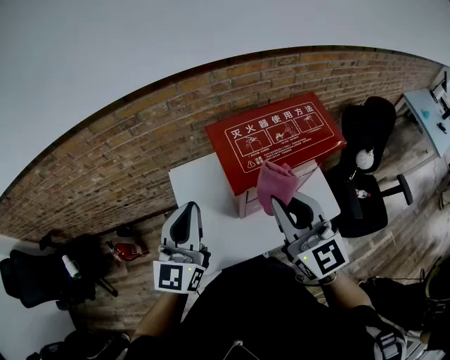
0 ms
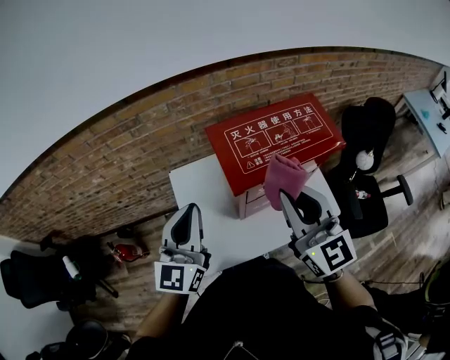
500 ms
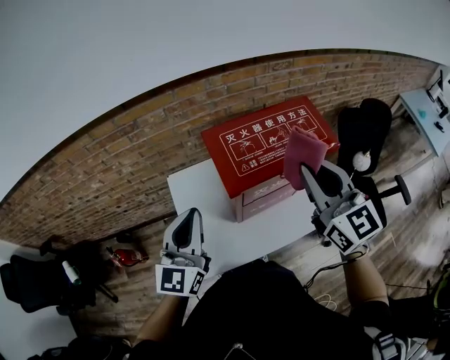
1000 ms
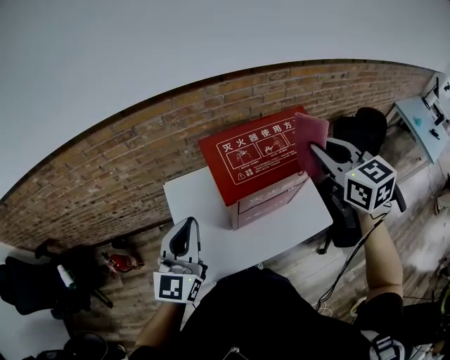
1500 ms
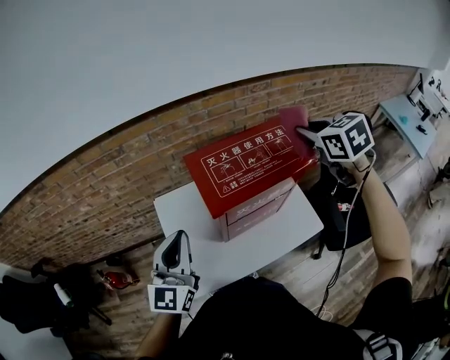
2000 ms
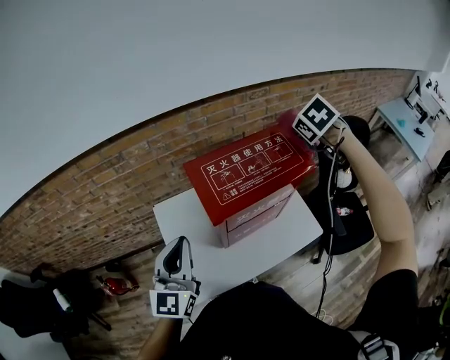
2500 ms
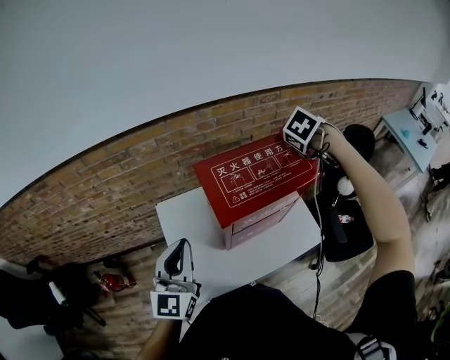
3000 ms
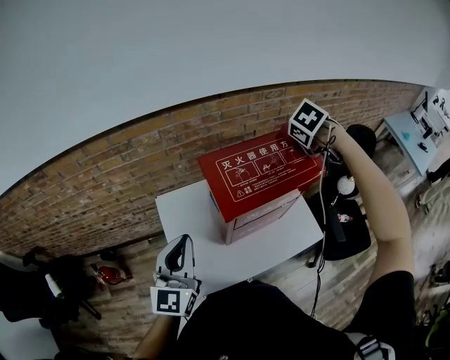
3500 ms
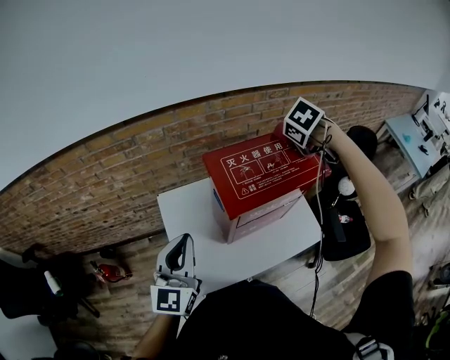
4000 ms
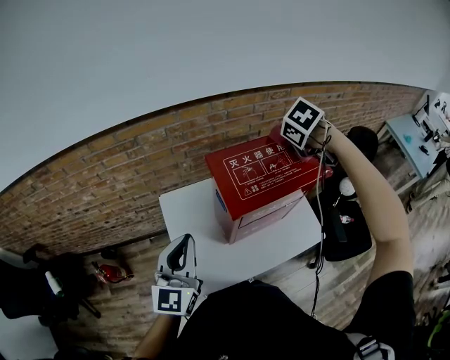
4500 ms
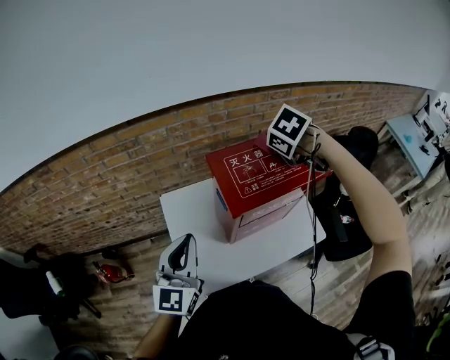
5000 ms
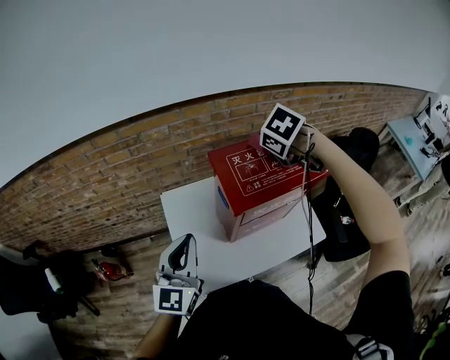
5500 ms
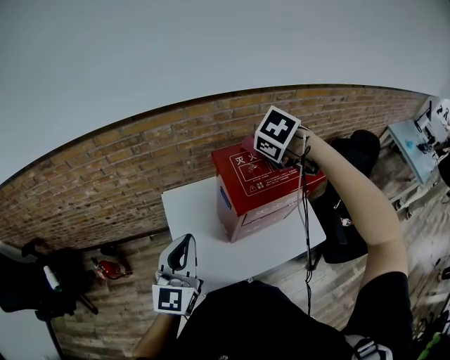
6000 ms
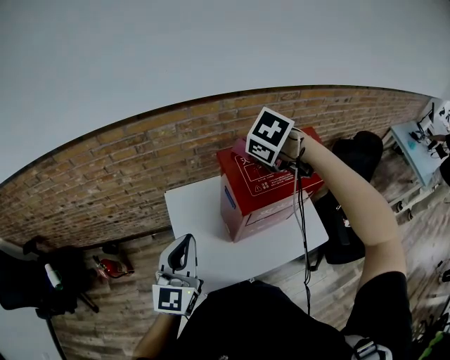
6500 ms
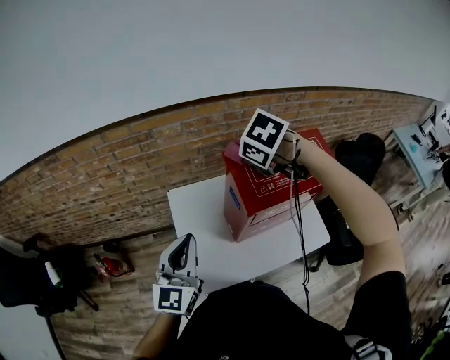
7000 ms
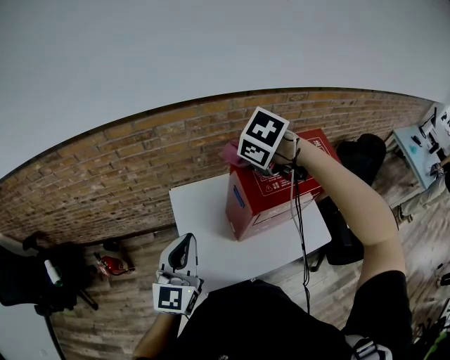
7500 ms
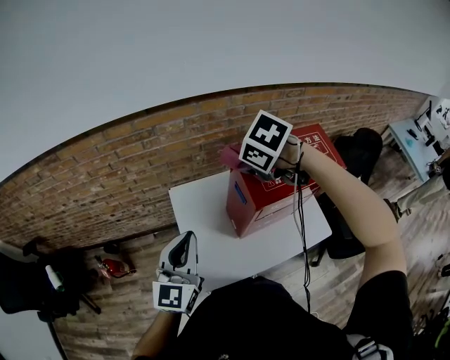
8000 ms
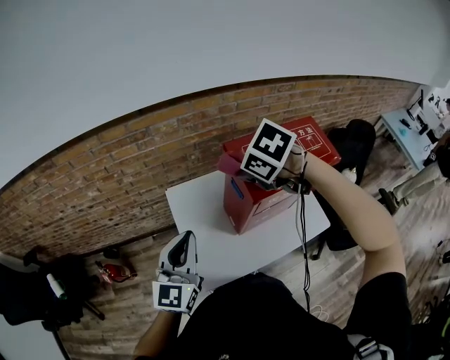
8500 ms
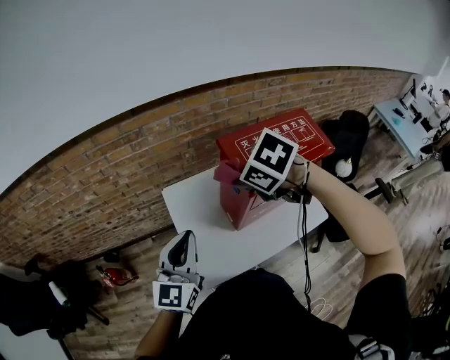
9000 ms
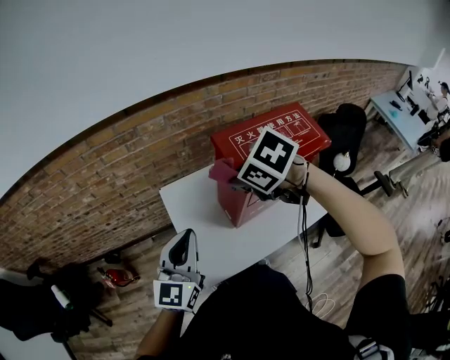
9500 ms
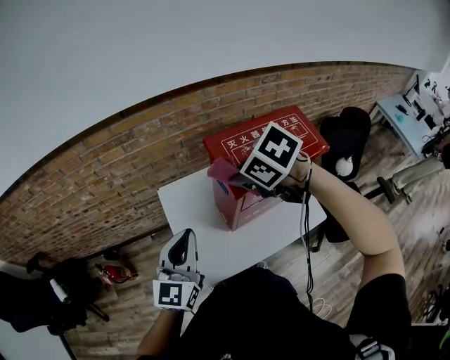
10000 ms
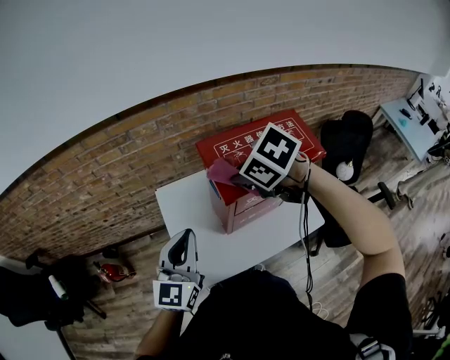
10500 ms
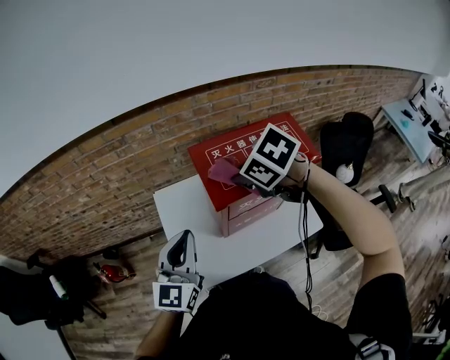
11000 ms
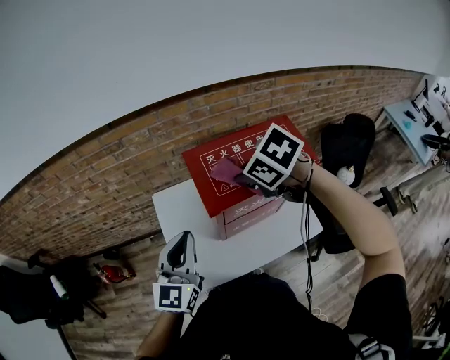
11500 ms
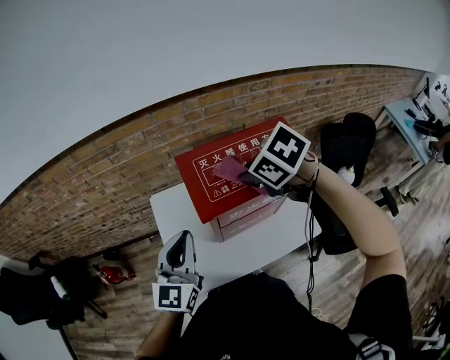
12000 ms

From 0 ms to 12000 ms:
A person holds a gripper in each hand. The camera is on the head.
From 0 ms to 2000 ms: The right gripper heads to the right and forward, covering about 25 cm, and angles its fingers downward, by some 40 degrees.
From 2000 ms to 4000 ms: The right gripper shifts some 10 cm downward, to the left and forward, and tilts its fingers about 30 degrees downward.
From 4000 ms to 6000 ms: The right gripper is displaced to the left by approximately 15 cm.
From 6000 ms to 8000 ms: The right gripper heads to the left, covering approximately 15 cm.
From 8000 ms to 10000 ms: The right gripper travels backward by roughly 5 cm.
From 10000 ms to 12000 ms: Both grippers move to the right, roughly 10 cm.

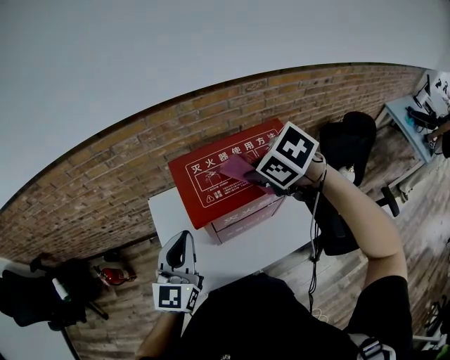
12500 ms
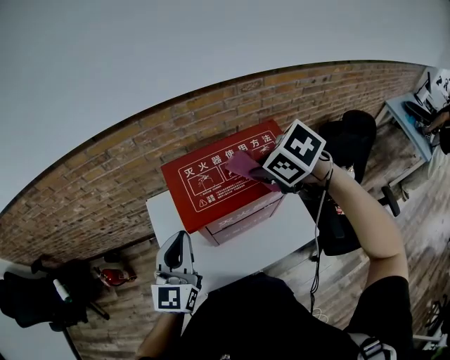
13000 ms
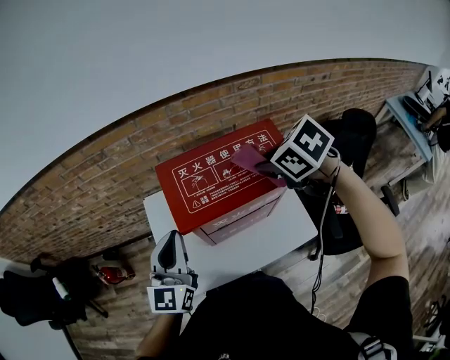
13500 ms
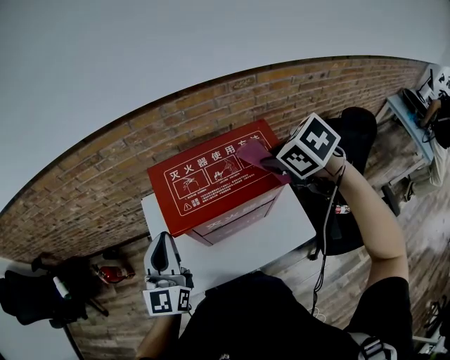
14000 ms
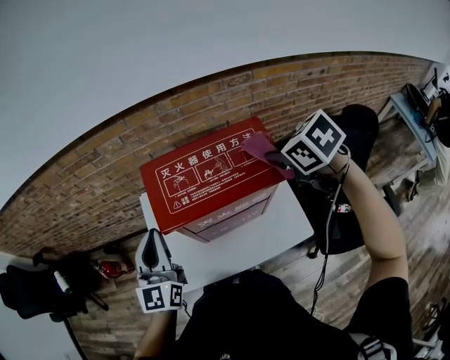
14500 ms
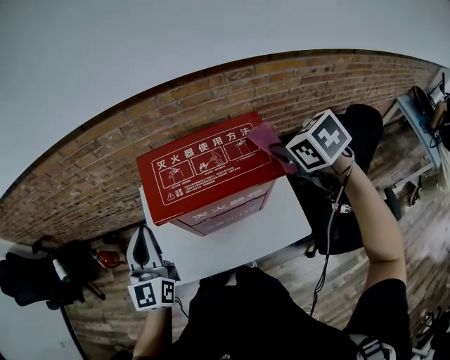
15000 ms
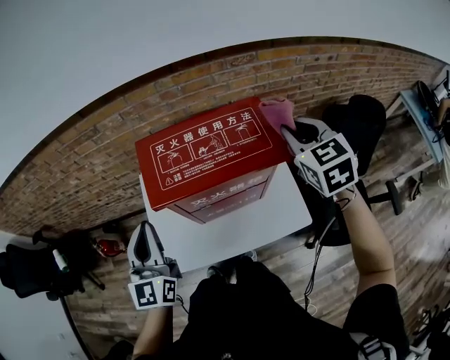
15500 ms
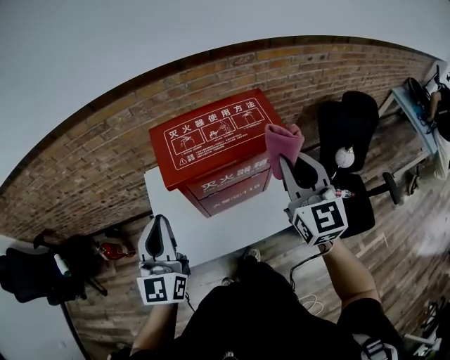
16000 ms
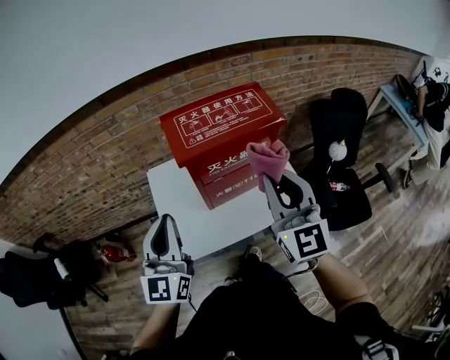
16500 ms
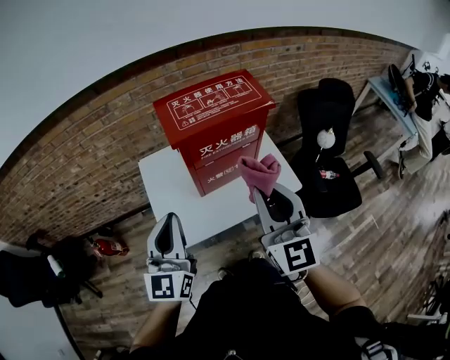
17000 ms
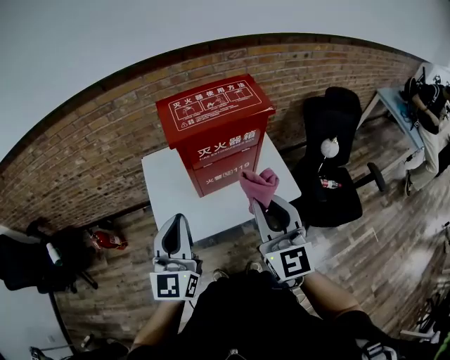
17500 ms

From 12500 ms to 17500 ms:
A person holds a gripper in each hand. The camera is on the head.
From 12500 ms to 15000 ms: The right gripper heads to the right, covering some 15 cm; the left gripper rotates roughly 20 degrees.
From 15000 ms to 17500 ms: The right gripper is displaced backward by roughly 35 cm, and points its fingers about 50 degrees further upward; the left gripper shifts some 20 cm backward.

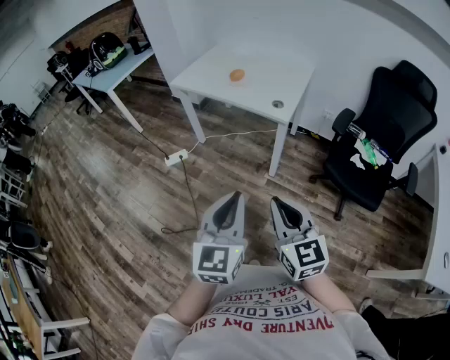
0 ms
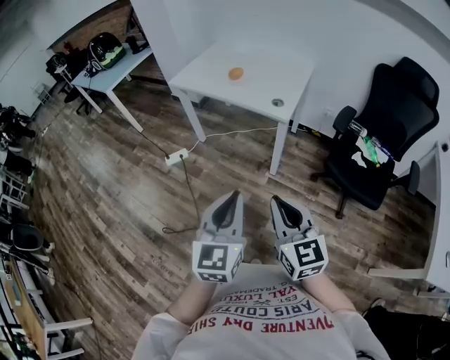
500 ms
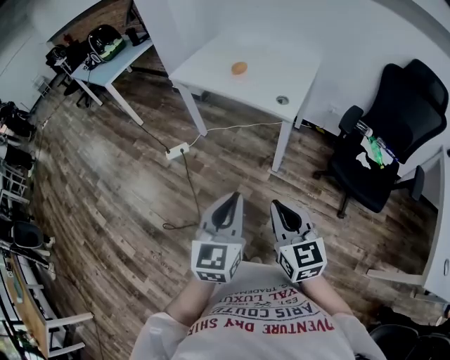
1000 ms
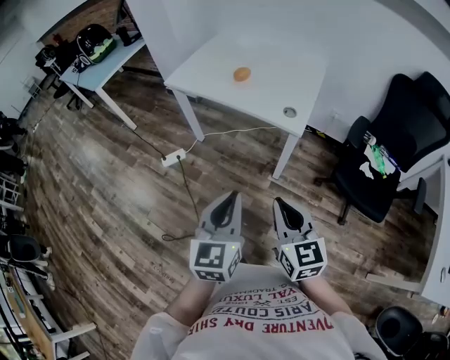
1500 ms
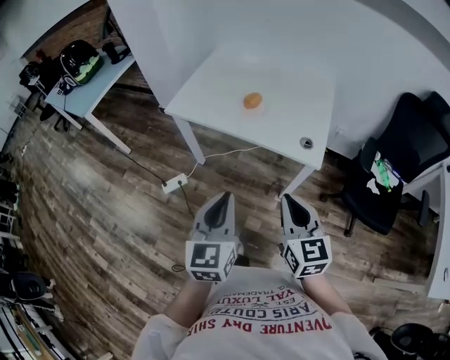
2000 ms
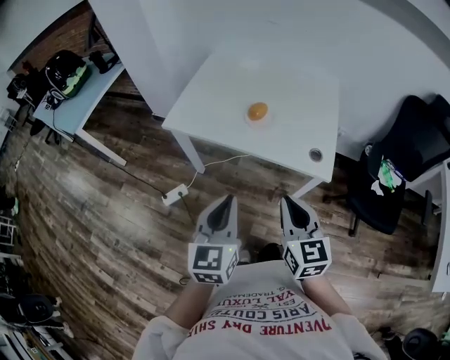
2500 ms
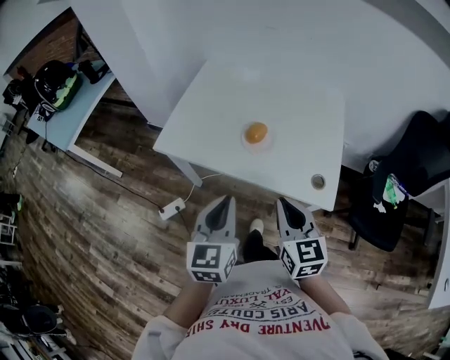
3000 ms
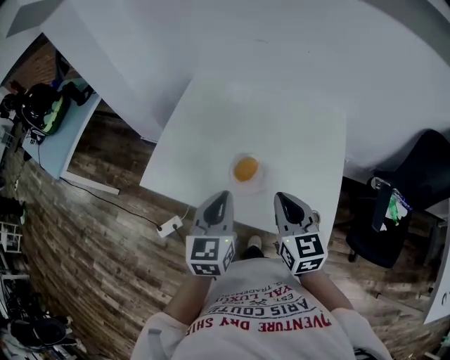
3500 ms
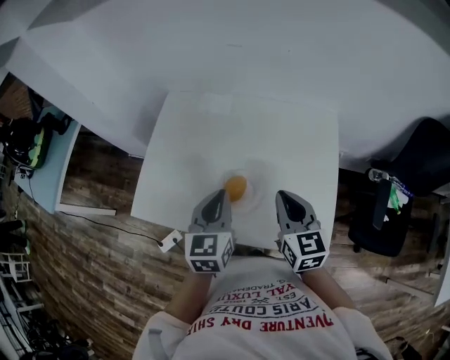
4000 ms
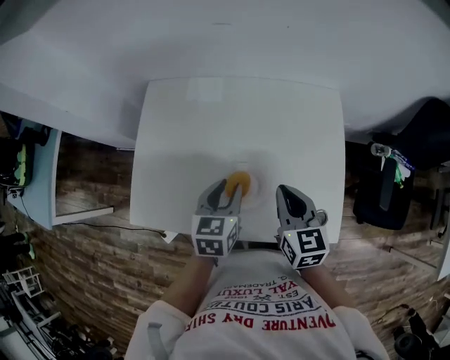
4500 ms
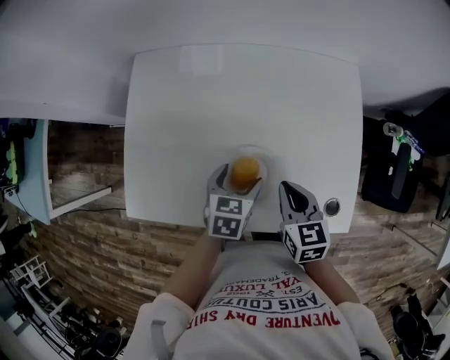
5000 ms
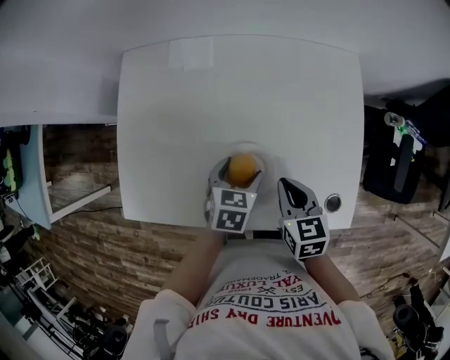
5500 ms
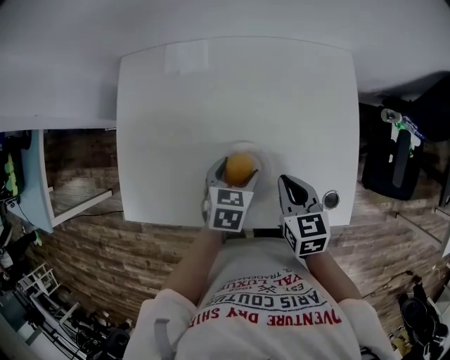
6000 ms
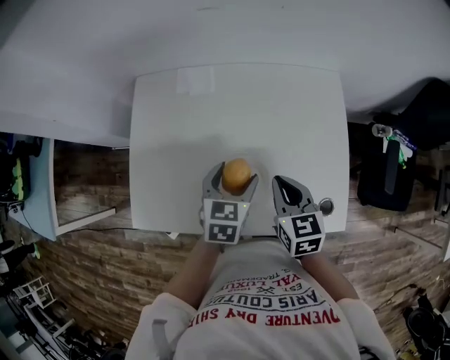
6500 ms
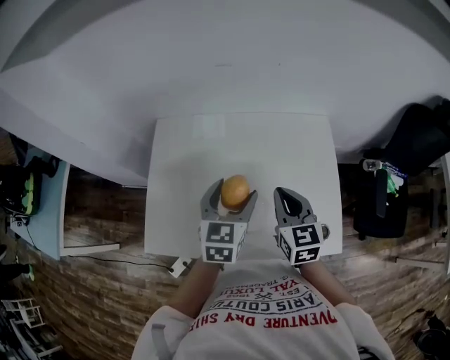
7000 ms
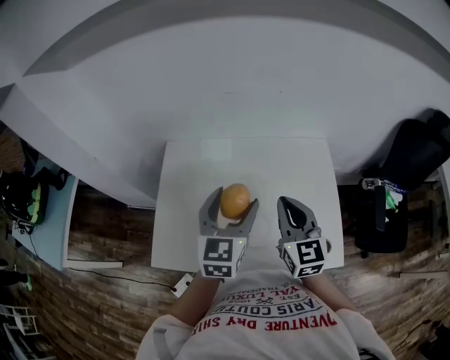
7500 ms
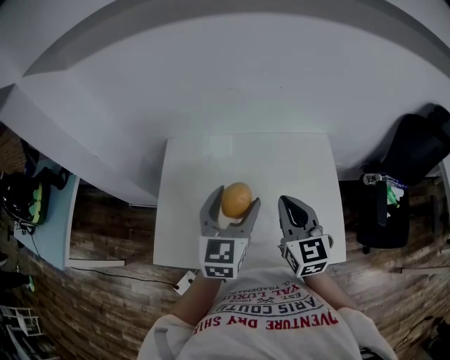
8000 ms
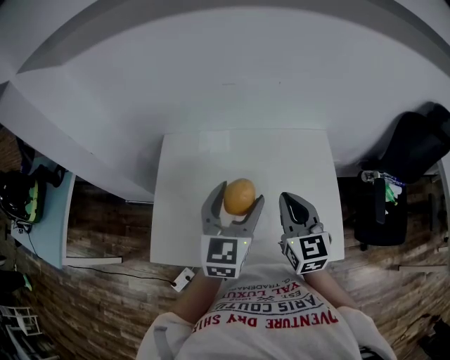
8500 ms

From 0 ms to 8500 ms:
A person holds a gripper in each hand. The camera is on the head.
From 0 ms to 2000 ms: The right gripper travels forward by approximately 35 cm, while the left gripper moves forward and to the left, some 40 cm.
From 2000 ms to 4000 ms: The pair of grippers is taken forward, roughly 50 cm.
From 4000 ms to 6500 ms: The left gripper moves downward and forward, some 15 cm, turns by roughly 30 degrees, and opens up; the right gripper moves downward, about 10 cm.
From 6500 ms to 8500 ms: Both grippers travel together upward, some 20 cm. The left gripper changes its angle by approximately 30 degrees, while the right gripper turns by approximately 20 degrees.

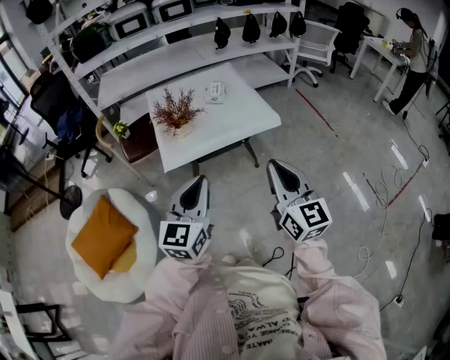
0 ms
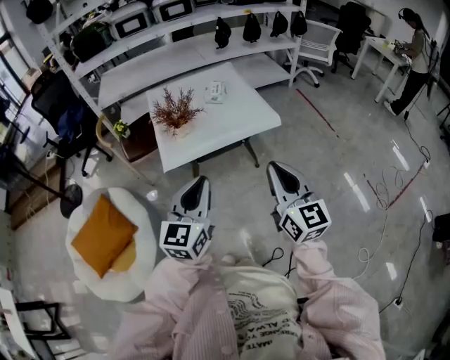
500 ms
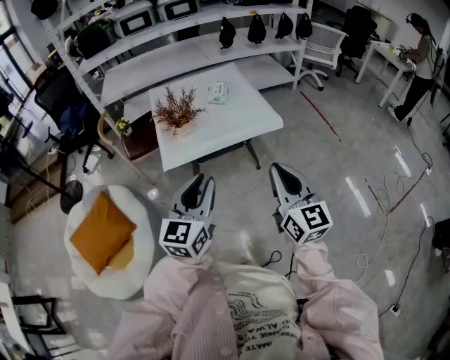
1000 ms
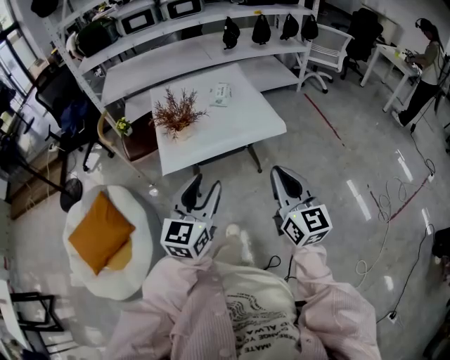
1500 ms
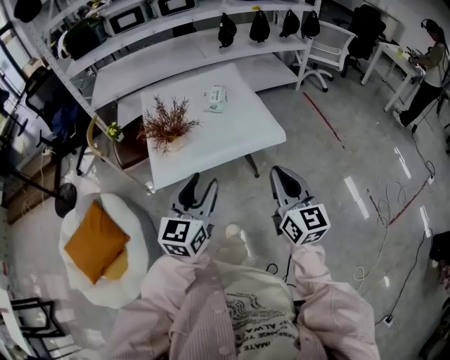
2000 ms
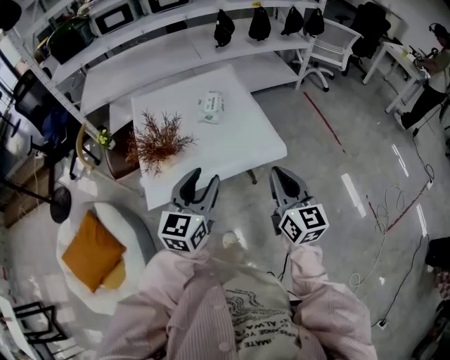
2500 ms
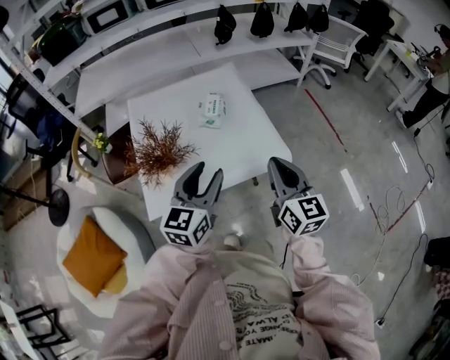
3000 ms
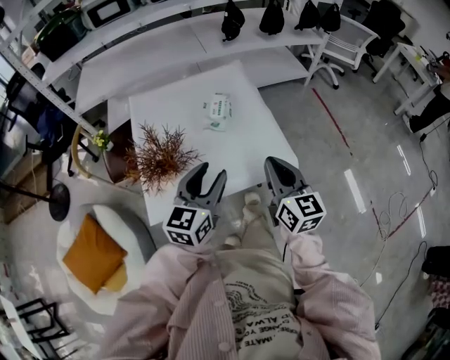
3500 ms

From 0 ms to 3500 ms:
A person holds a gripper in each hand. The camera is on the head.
From 0 ms to 2000 ms: The right gripper shifts approximately 15 cm forward and downward. Meanwhile the left gripper travels forward by some 15 cm, and opens.
From 2000 ms to 3500 ms: The two grippers go roughly 25 cm forward.
